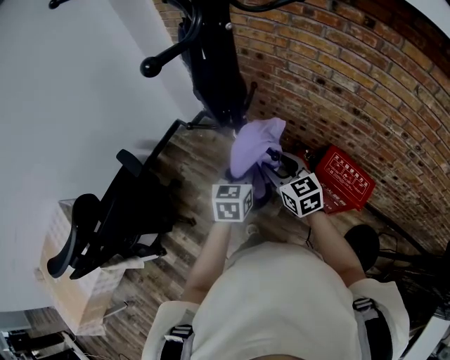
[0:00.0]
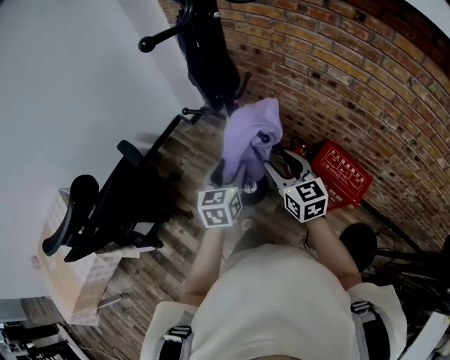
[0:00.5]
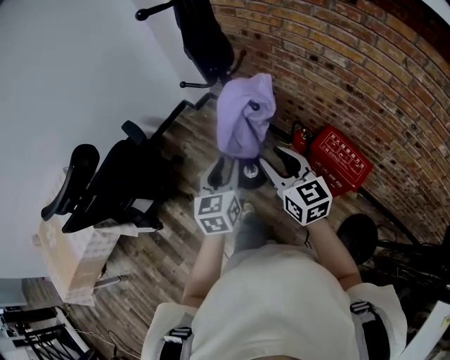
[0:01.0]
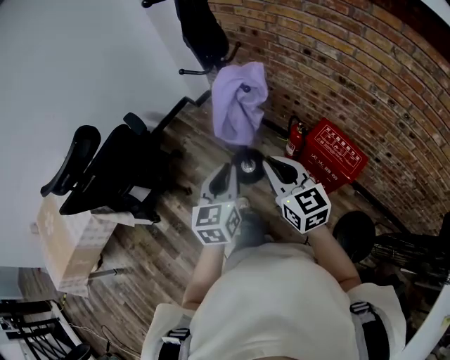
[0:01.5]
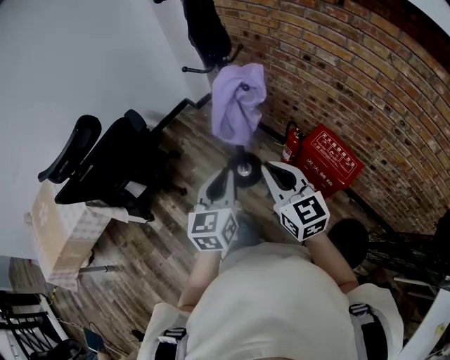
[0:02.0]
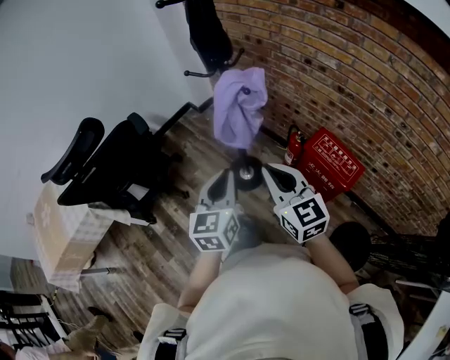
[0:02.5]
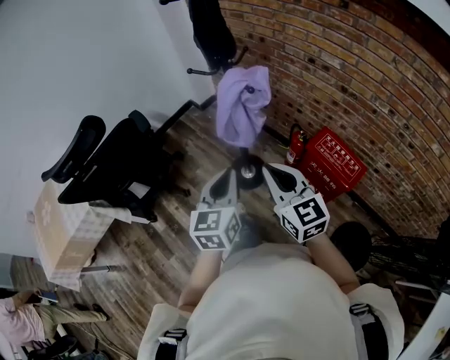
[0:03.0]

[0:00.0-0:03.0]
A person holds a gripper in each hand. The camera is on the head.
0:00.0 to 0:01.5: The grippers both shift backward by roughly 25 cm. The left gripper opens, then closes again, while the right gripper closes up.
0:01.5 to 0:03.0: The grippers stay close to where they were, moving slightly.

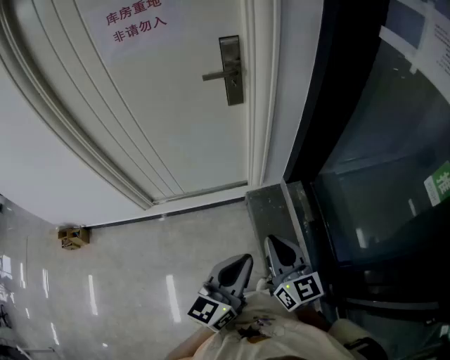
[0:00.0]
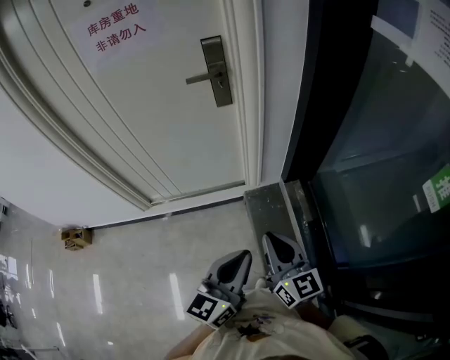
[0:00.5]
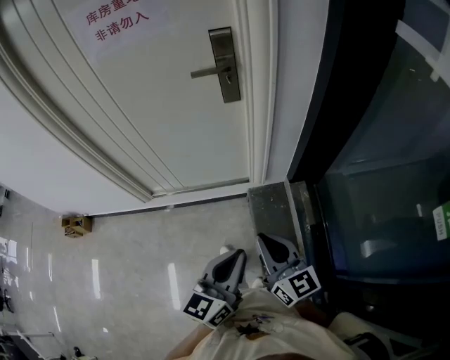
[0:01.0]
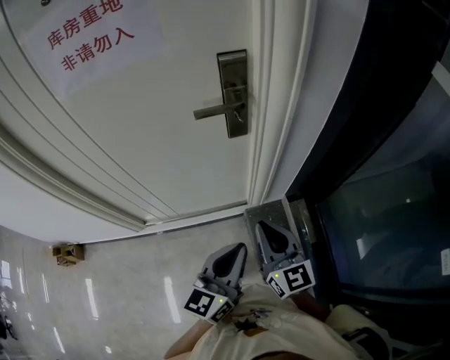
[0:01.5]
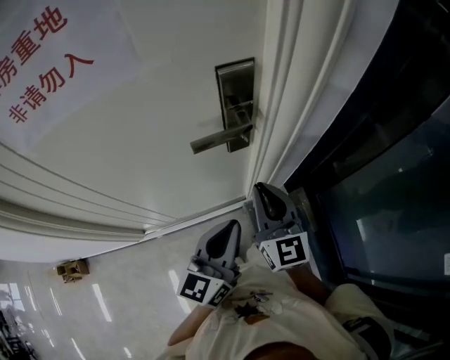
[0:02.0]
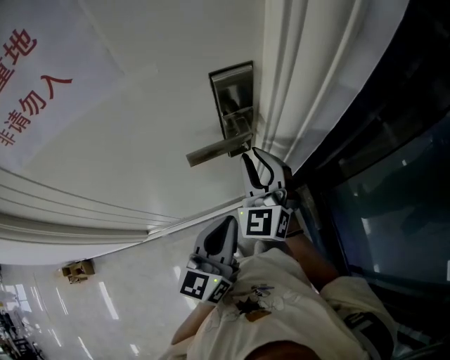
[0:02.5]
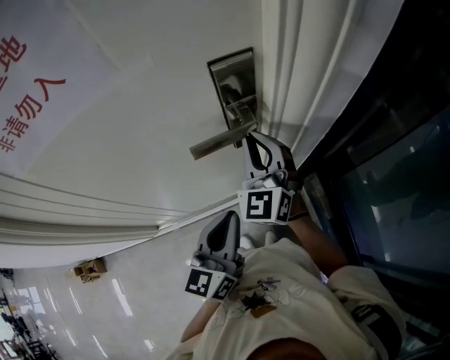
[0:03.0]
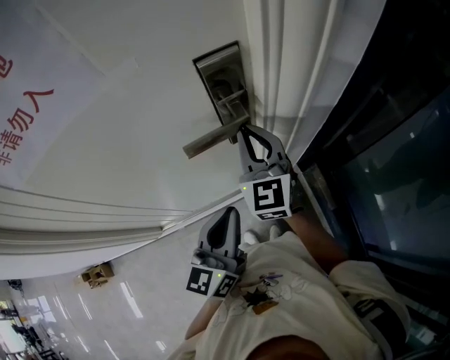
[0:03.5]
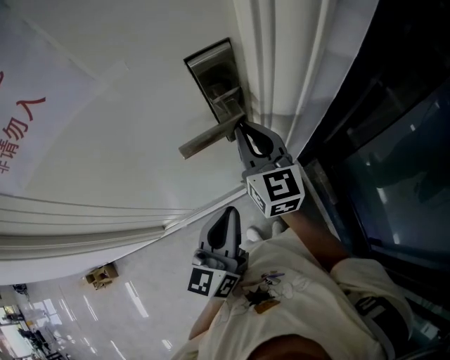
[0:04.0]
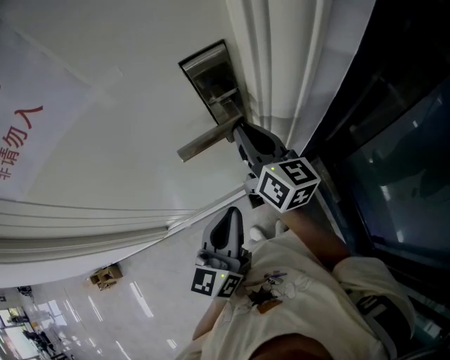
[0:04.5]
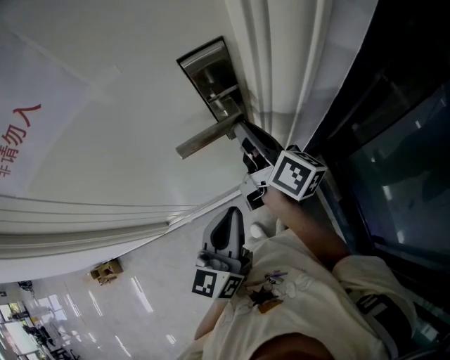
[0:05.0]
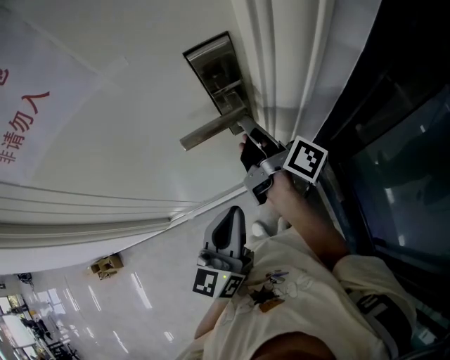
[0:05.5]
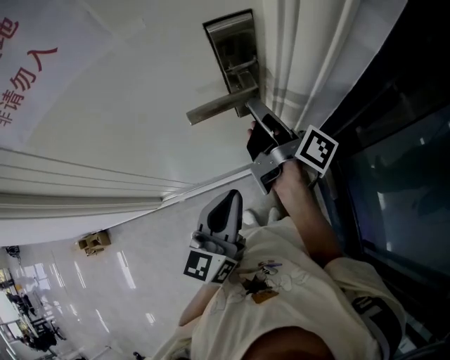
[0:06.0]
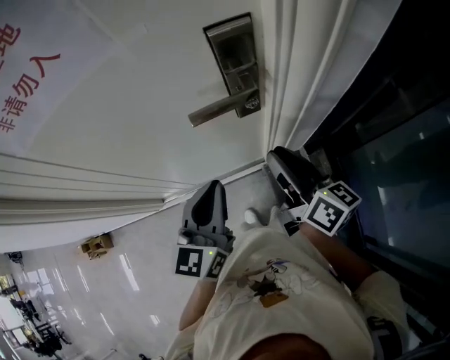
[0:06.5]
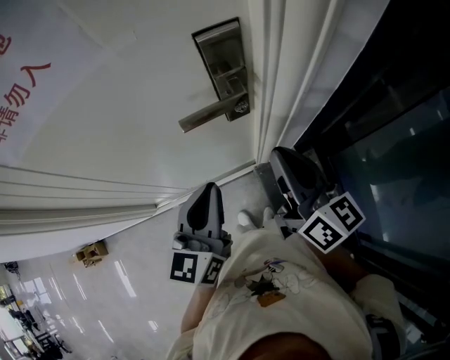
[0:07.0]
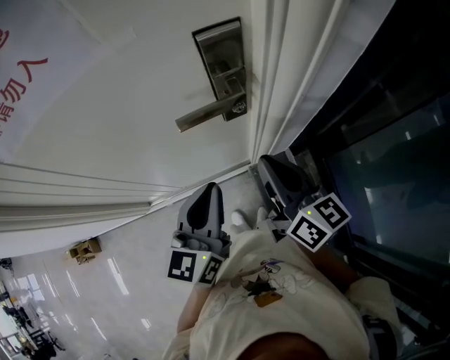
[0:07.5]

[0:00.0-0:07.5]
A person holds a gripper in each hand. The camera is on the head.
0:00.0 to 0:02.0: The two grippers travel together, forward, some 40 cm.
0:02.0 to 0:04.0: The right gripper heads forward, covering roughly 10 cm.
0:04.0 to 0:05.5: The right gripper rolls clockwise, seen from behind, by roughly 70 degrees.
0:05.5 to 0:07.5: The right gripper heads backward, covering approximately 15 cm, rolls counterclockwise, seen from behind, by about 40 degrees, and opens, then closes again.

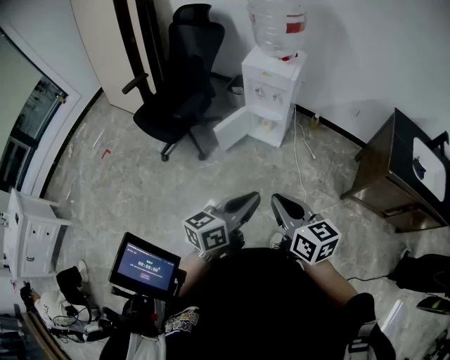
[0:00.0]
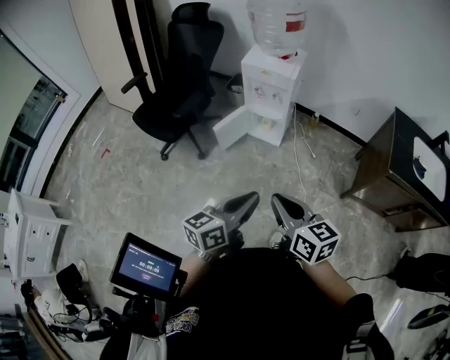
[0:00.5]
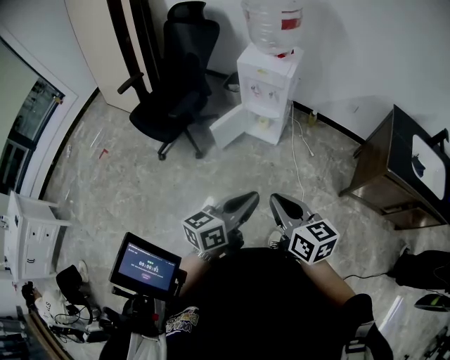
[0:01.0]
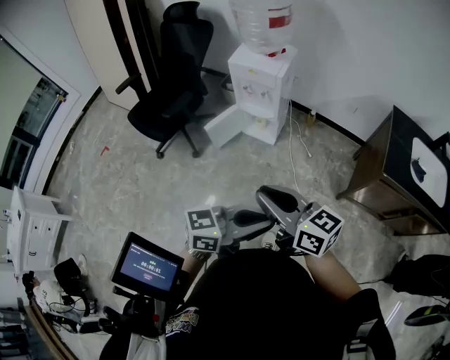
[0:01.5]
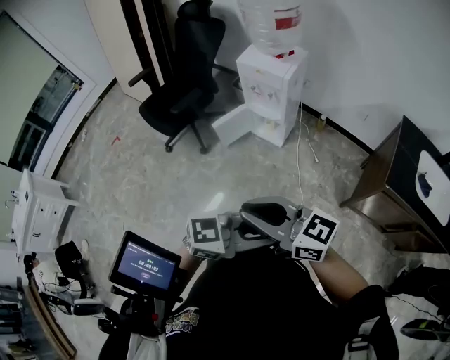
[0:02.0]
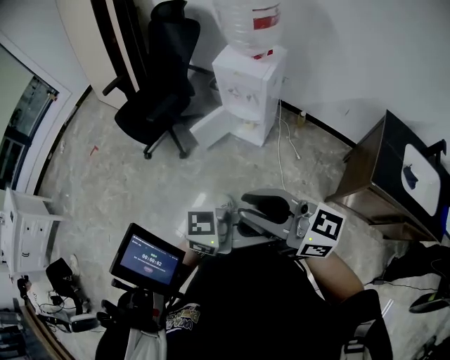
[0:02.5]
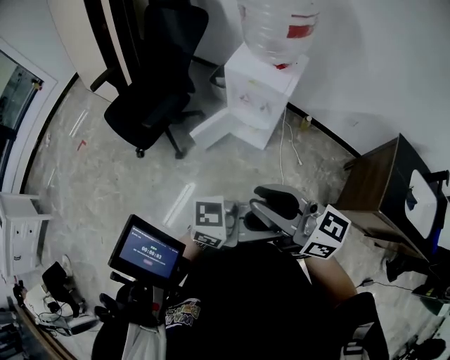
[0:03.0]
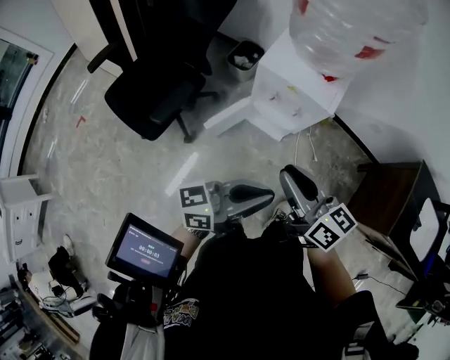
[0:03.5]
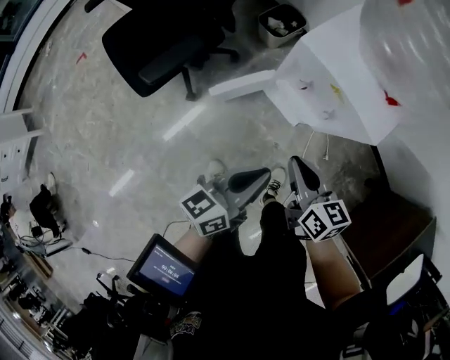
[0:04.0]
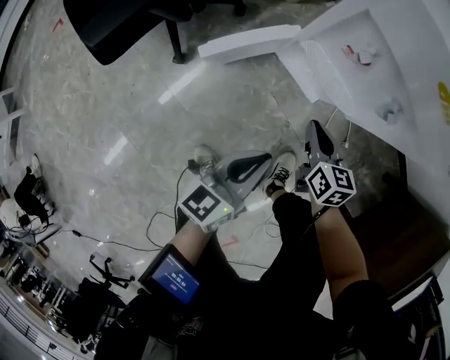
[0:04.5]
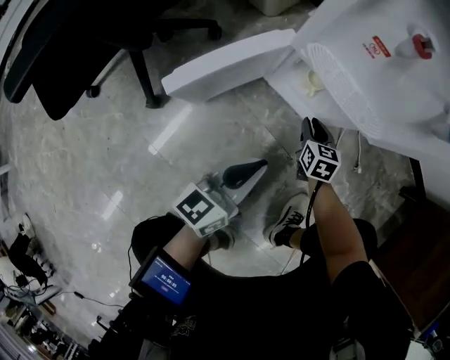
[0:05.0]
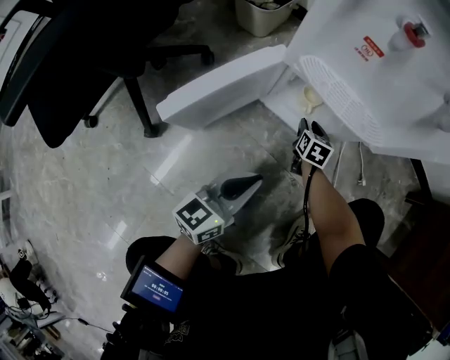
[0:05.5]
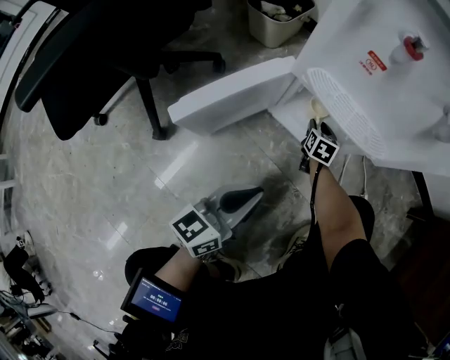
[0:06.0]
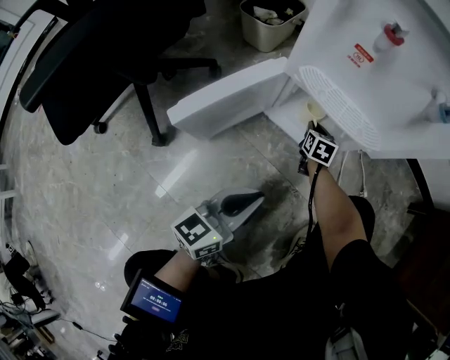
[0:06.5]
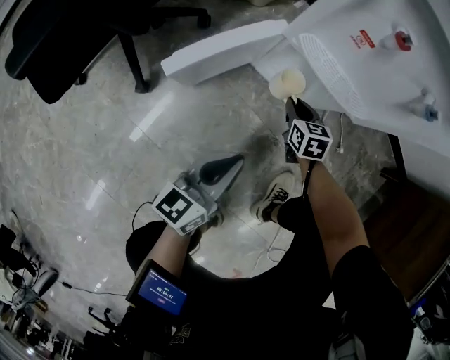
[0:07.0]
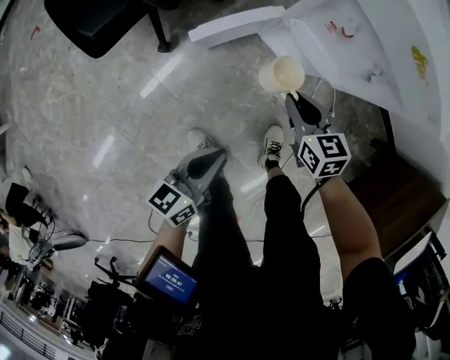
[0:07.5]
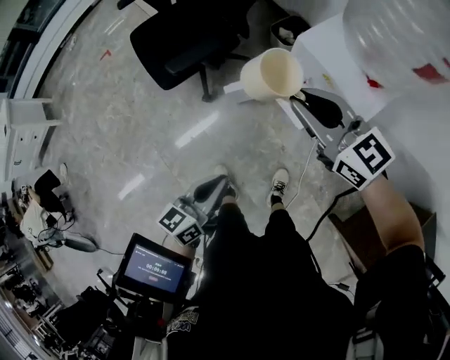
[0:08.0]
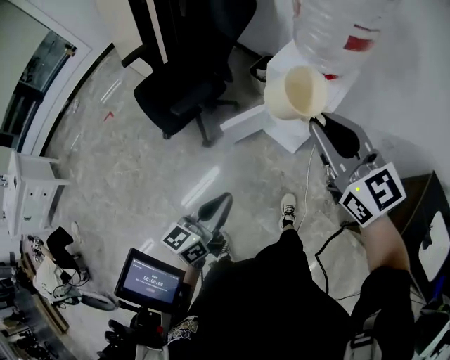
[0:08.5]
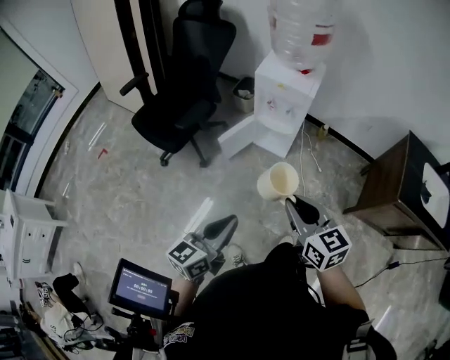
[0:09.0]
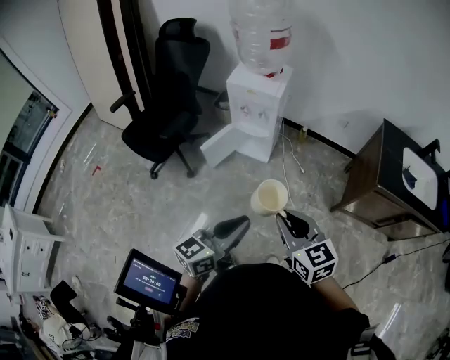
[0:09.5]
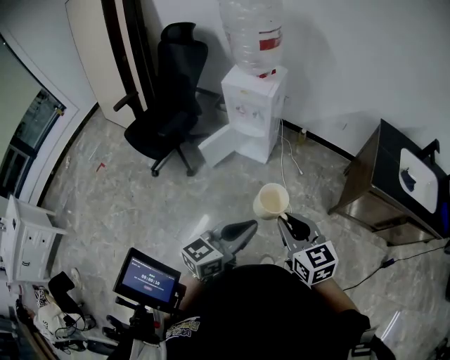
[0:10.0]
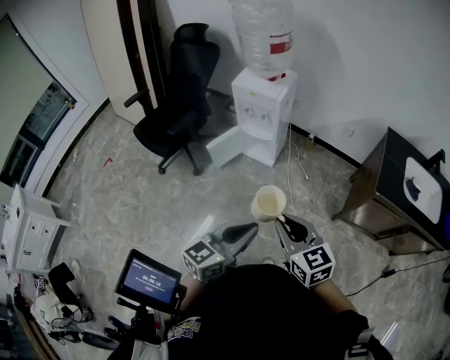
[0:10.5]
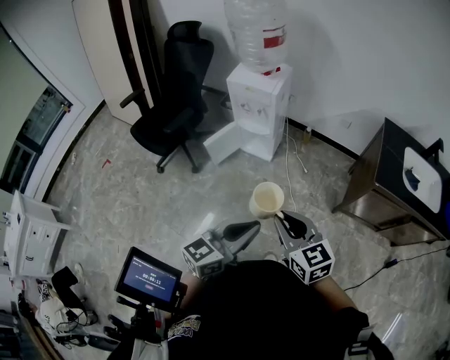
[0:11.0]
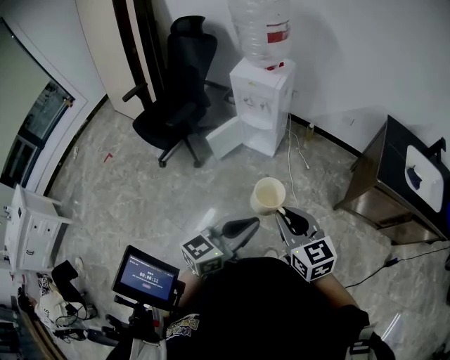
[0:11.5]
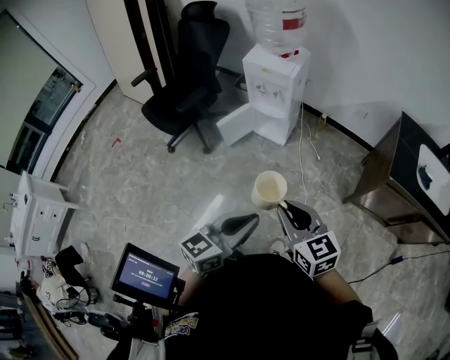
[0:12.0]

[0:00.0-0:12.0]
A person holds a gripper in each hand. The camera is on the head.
0:00.0 to 0:02.0: The right gripper shifts about 10 cm upward, and swivels about 40 degrees. Meanwhile the left gripper ends up roughly 20 cm from where it was, and changes its angle by some 40 degrees.
0:02.0 to 0:04.0: The two grippers travel together, roughly 50 cm. The right gripper tips its fingers downward by approximately 30 degrees. The left gripper swivels some 60 degrees.
0:04.0 to 0:06.0: The left gripper heads downward, covering about 40 cm, while the right gripper shifts approximately 60 cm downward, changes its angle by about 40 degrees, and opens.
0:06.0 to 0:08.0: The right gripper moves upward, approximately 80 cm, tilts its fingers some 40 degrees upward, and closes, while the left gripper goes some 40 cm upward, and rotates roughly 30 degrees.
0:08.0 to 0:10.0: The left gripper ends up some 35 cm from where it was, and swivels roughly 40 degrees. Meanwhile the right gripper travels upward and back again, some 15 cm each way, and swivels about 50 degrees.
0:10.0 to 0:12.0: The grippers make only small movements.

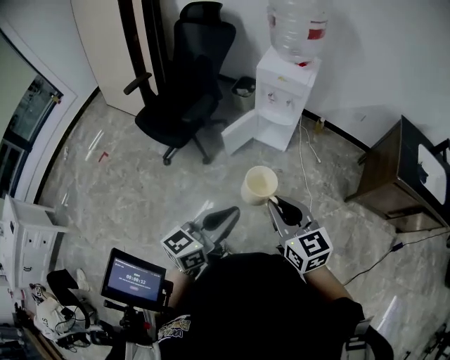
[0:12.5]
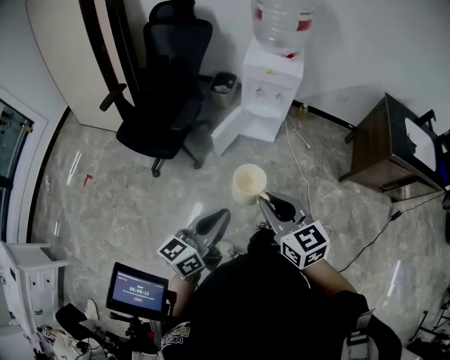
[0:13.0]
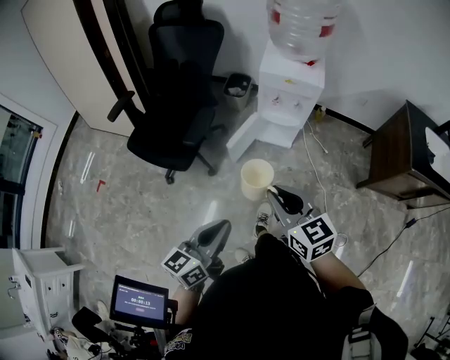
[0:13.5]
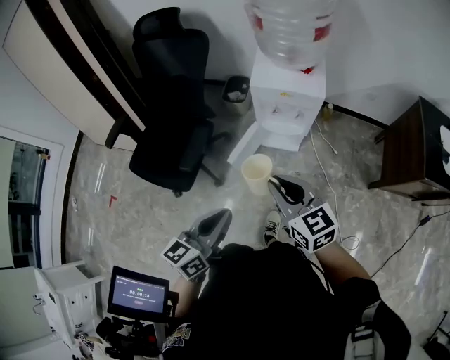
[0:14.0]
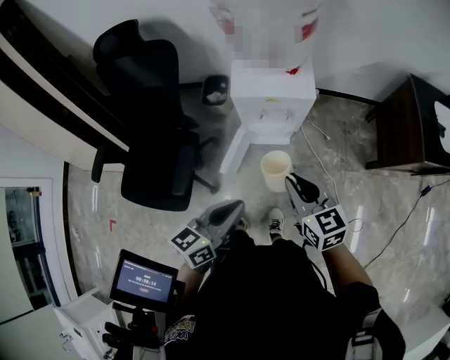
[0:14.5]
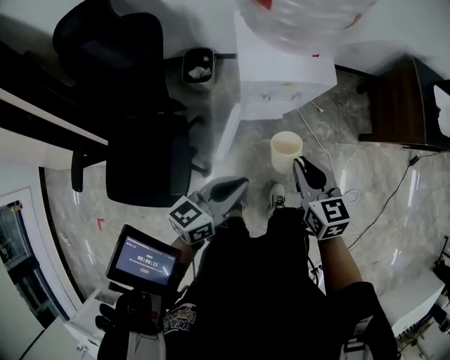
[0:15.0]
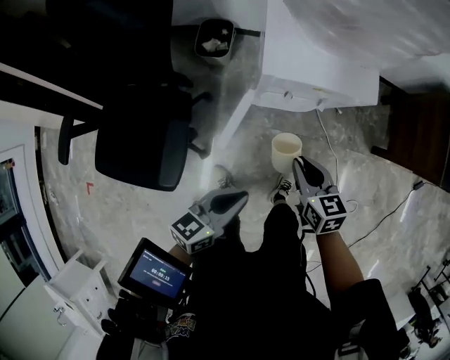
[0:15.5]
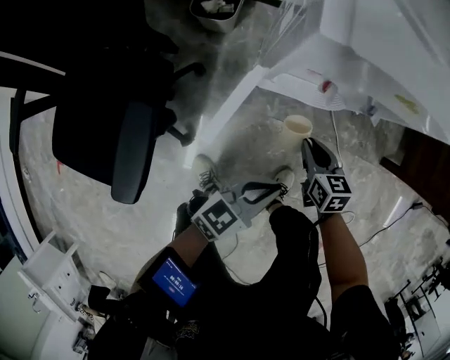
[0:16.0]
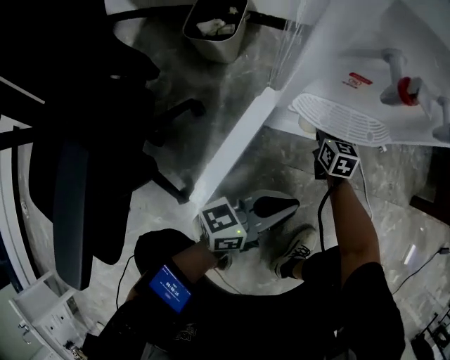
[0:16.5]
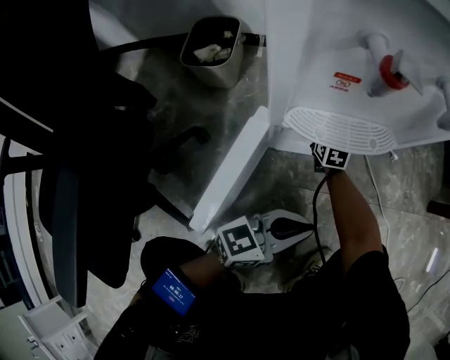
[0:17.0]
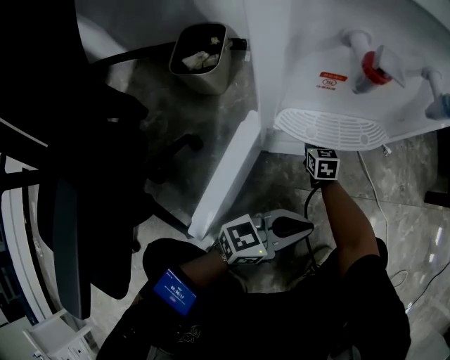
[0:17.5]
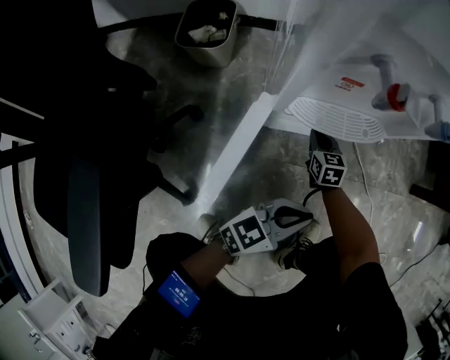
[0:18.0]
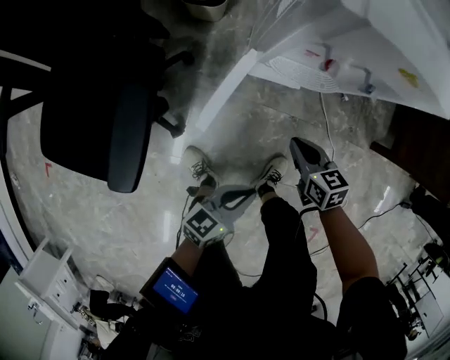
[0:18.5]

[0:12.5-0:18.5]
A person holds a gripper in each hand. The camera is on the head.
0:12.5 to 0:14.5: The grippers both shift forward by about 35 cm. The left gripper rotates about 20 degrees; the right gripper turns by approximately 20 degrees.
0:14.5 to 0:16.5: Both grippers travel together downward, some 60 cm. The left gripper changes its angle by some 20 degrees.
0:16.5 to 0:18.5: The right gripper is displaced upward by about 25 cm, and changes its angle by roughly 20 degrees; the left gripper ends up about 20 cm from where it was.
